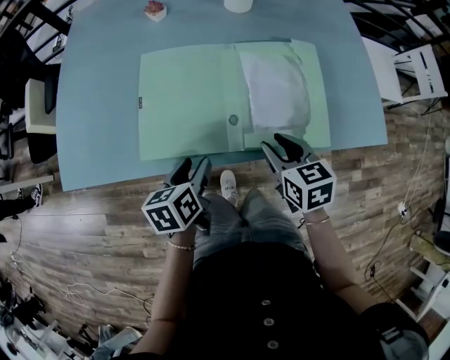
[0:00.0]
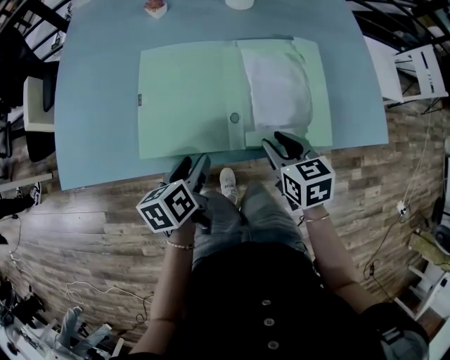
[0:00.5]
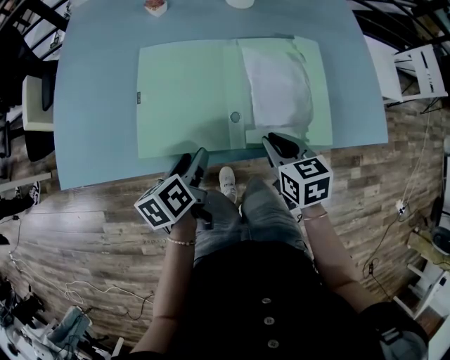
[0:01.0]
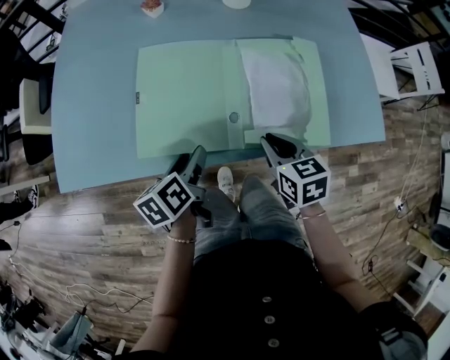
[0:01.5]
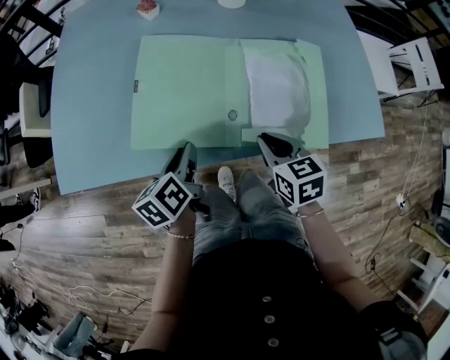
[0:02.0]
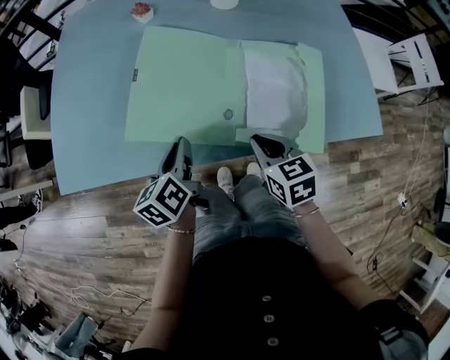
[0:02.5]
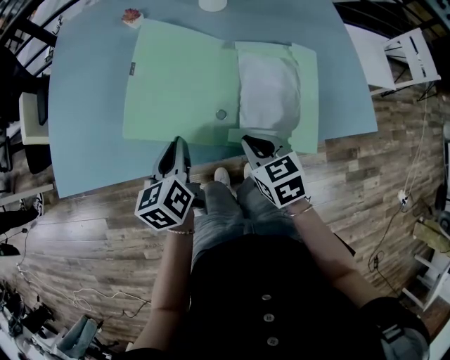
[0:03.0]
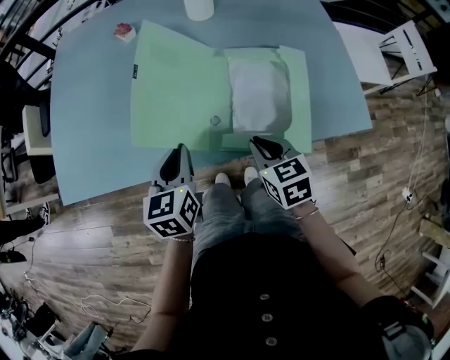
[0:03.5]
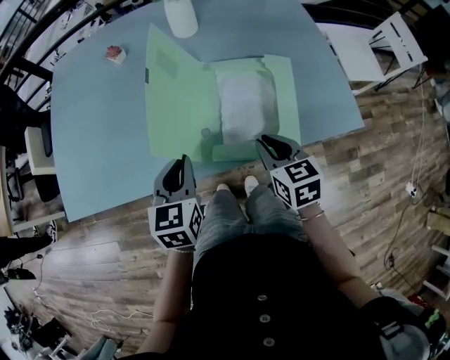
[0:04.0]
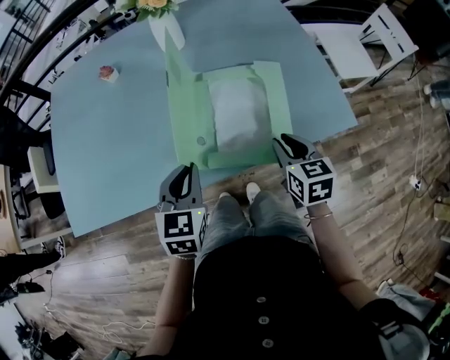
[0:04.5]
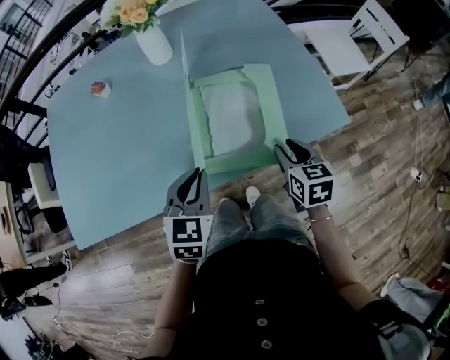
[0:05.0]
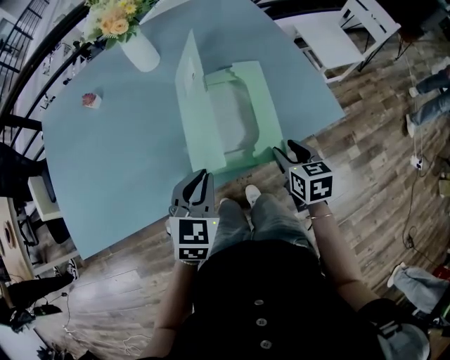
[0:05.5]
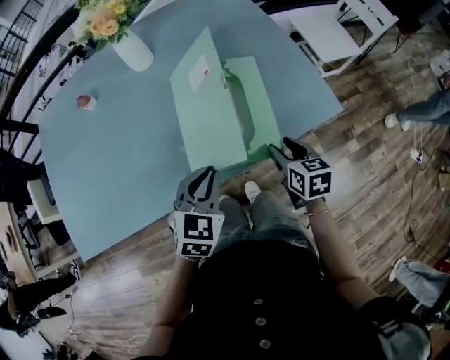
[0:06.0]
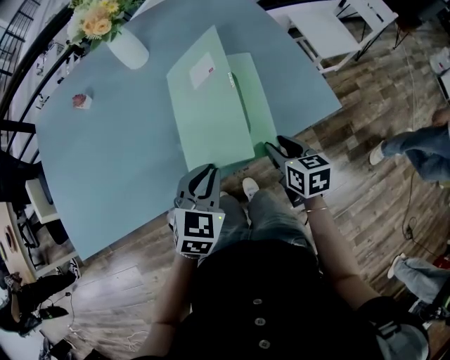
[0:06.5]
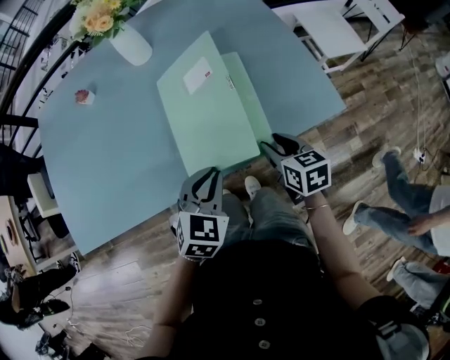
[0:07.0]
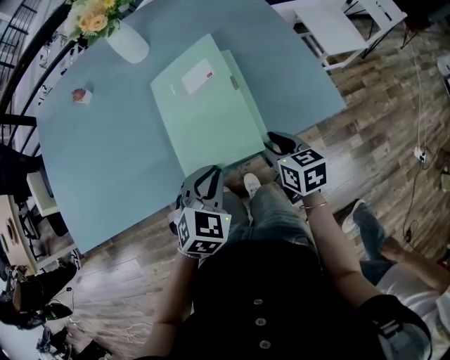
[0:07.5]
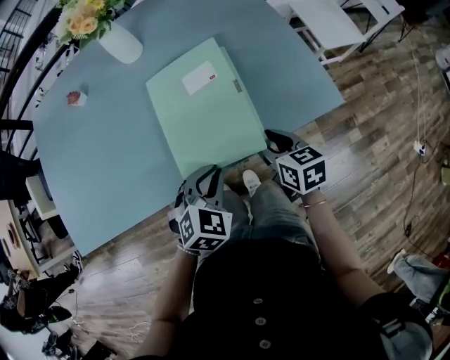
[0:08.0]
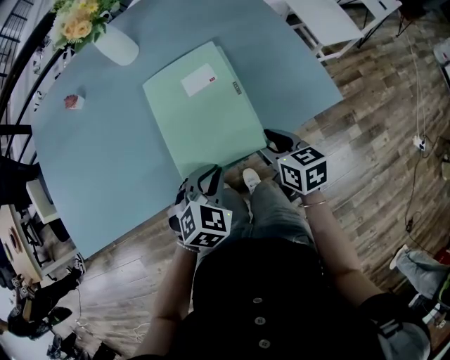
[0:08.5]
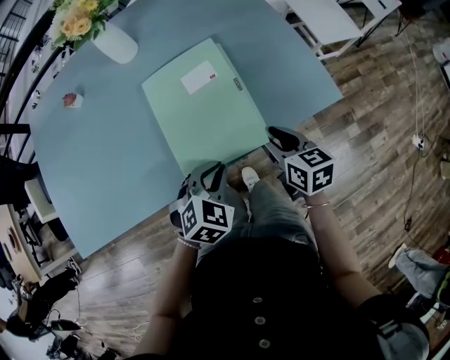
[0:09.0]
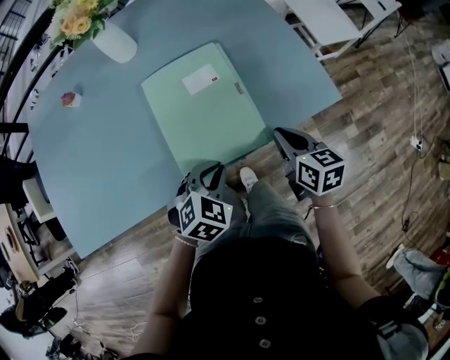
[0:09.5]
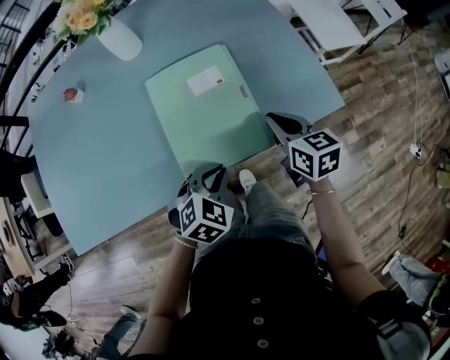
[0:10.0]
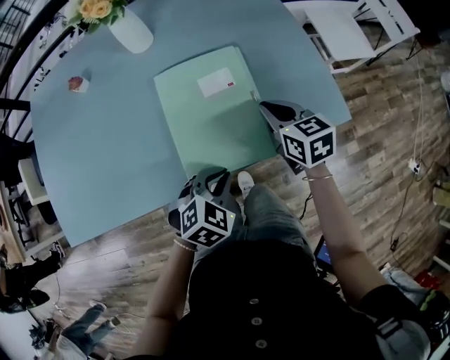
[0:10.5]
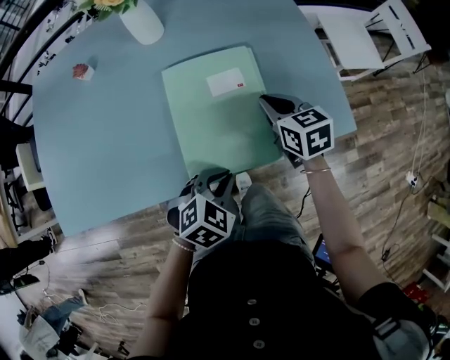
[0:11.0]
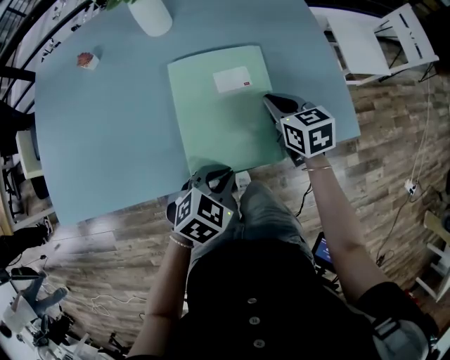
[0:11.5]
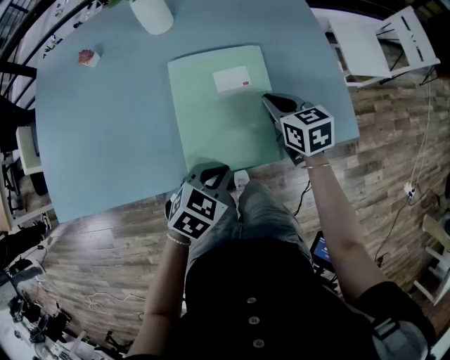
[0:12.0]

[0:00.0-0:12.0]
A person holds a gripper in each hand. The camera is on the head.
0:00.0 to 0:02.0: The right gripper closes; the left gripper closes its fingers.
0:02.0 to 0:04.0: The left gripper is displaced to the right and upward by approximately 15 cm, and rolls clockwise, seen from behind, by approximately 40 degrees, while the right gripper heads to the right, covering roughly 10 cm.
0:04.0 to 0:06.0: The grippers both shift to the right by about 15 cm. The right gripper rotates about 20 degrees, and opens, while the left gripper swivels some 40 degrees.
0:06.0 to 0:08.0: The left gripper changes place by roughly 5 cm.
0:08.0 to 0:10.0: The right gripper heads forward, covering some 5 cm, and closes.
0:10.0 to 0:12.0: The right gripper heads forward and to the left, covering roughly 10 cm.

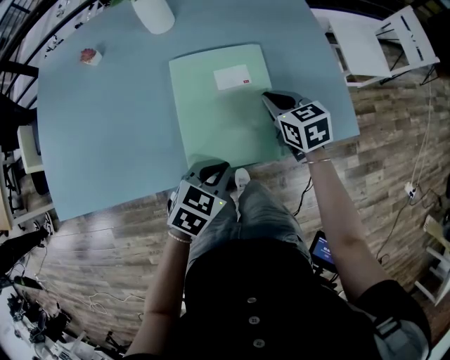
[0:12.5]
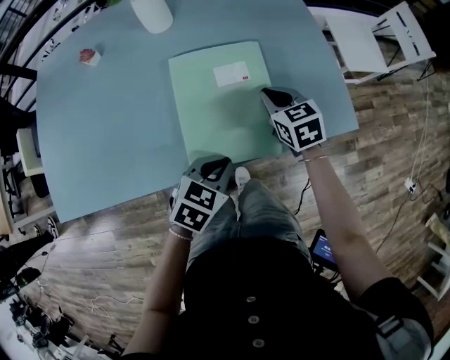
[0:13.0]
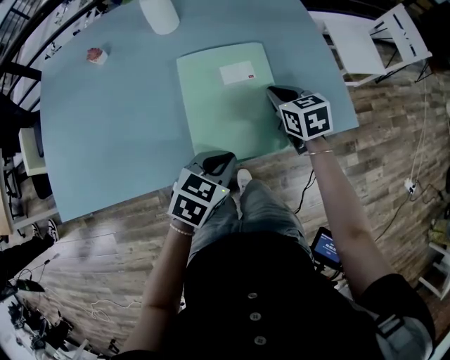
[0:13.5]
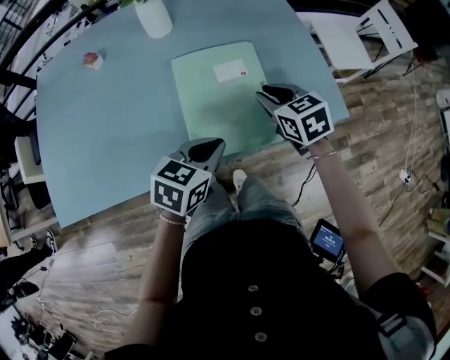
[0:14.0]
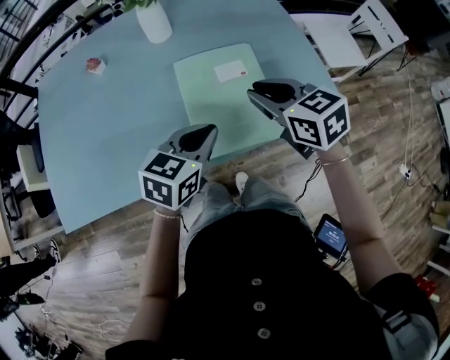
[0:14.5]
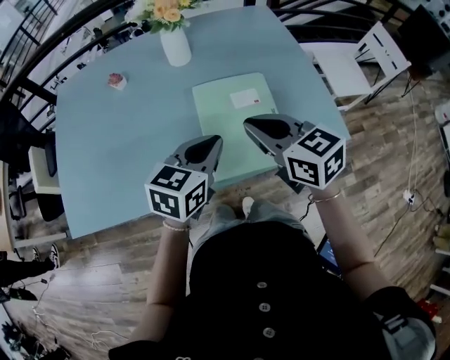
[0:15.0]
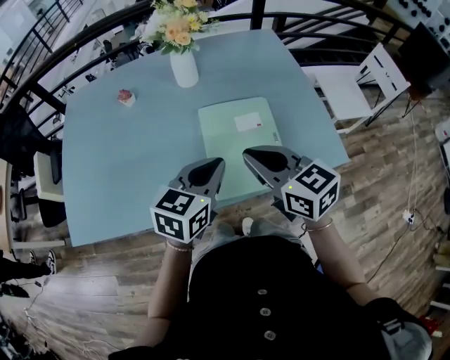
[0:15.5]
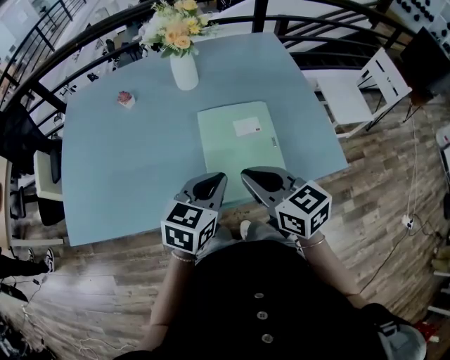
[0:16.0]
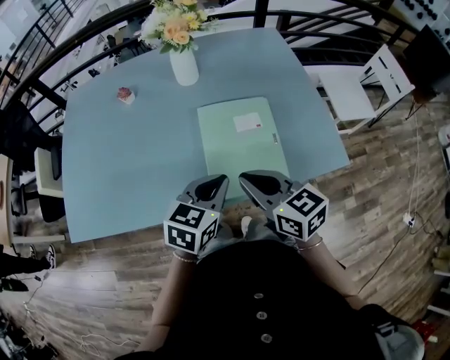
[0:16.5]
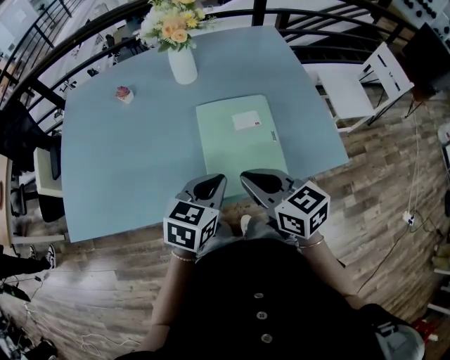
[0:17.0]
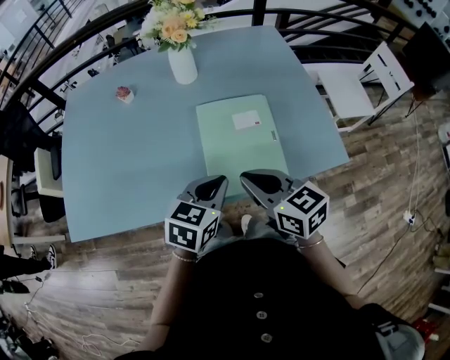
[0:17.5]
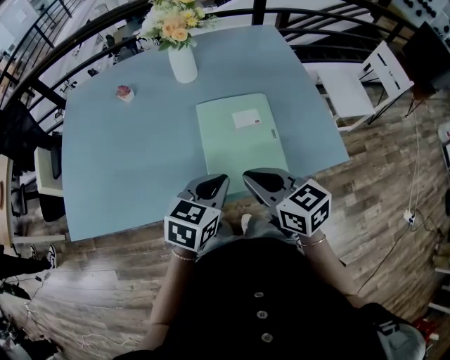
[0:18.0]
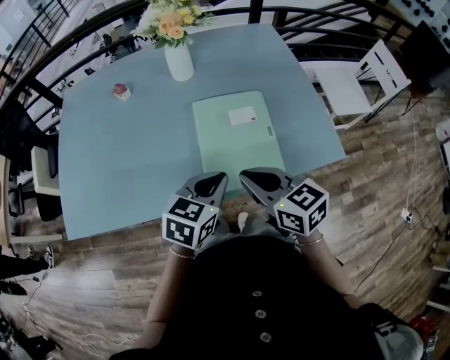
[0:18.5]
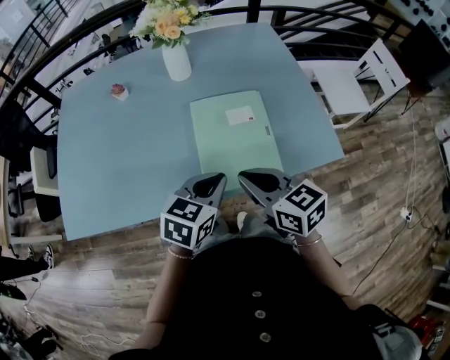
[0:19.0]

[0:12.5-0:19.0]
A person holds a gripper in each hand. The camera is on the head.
0:12.5 to 0:14.5: The left gripper shifts approximately 10 cm upward and to the left. The right gripper travels upward and backward by about 20 cm.
0:14.5 to 0:17.0: The right gripper travels backward and to the left by some 10 cm.
0:17.0 to 0:19.0: The grippers make only small movements.

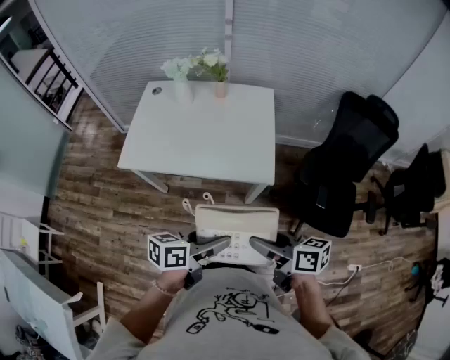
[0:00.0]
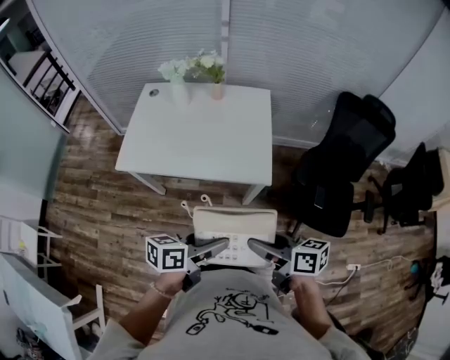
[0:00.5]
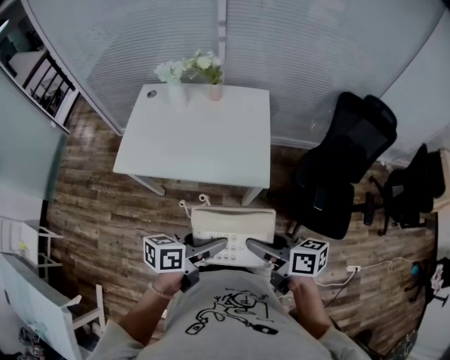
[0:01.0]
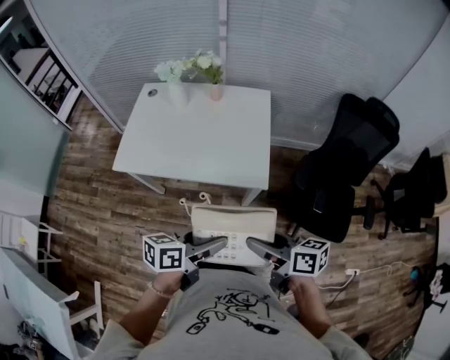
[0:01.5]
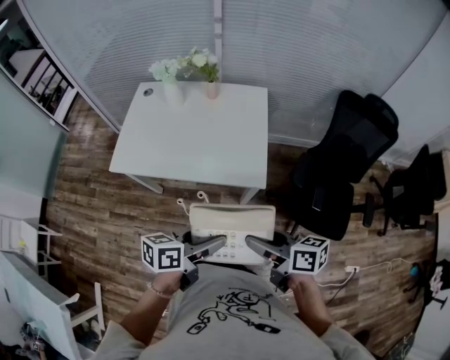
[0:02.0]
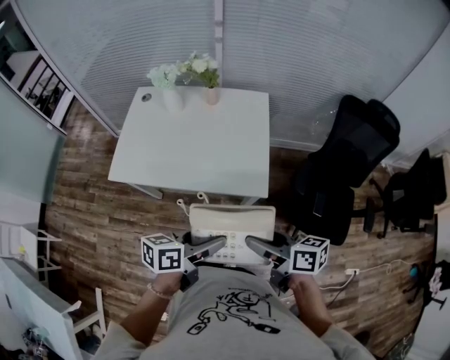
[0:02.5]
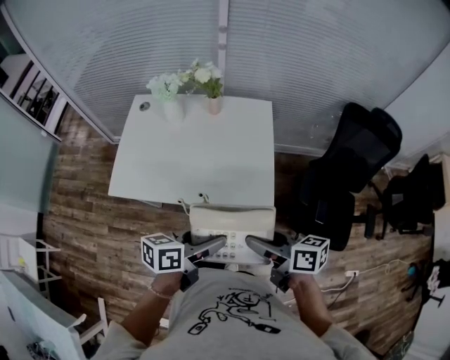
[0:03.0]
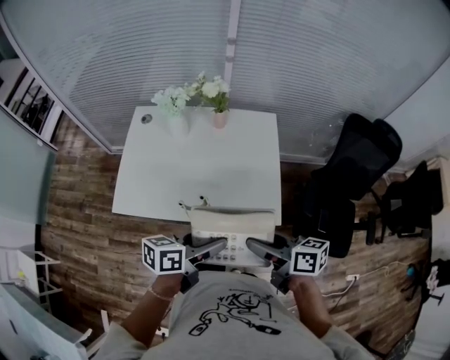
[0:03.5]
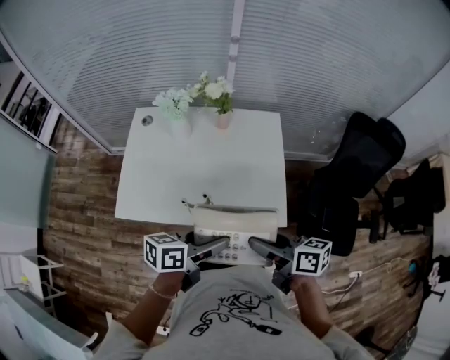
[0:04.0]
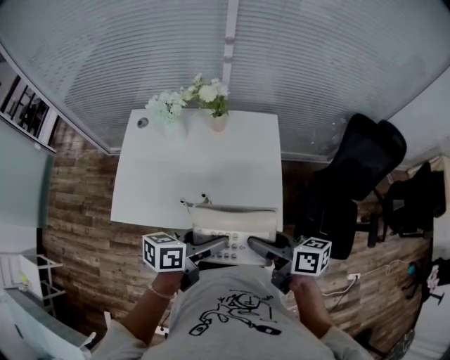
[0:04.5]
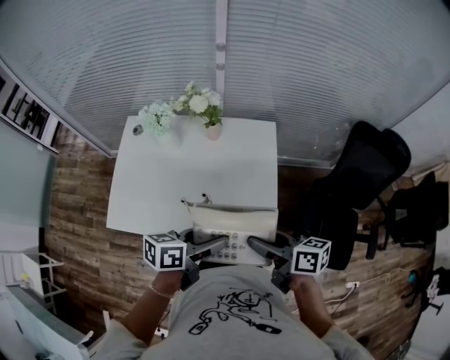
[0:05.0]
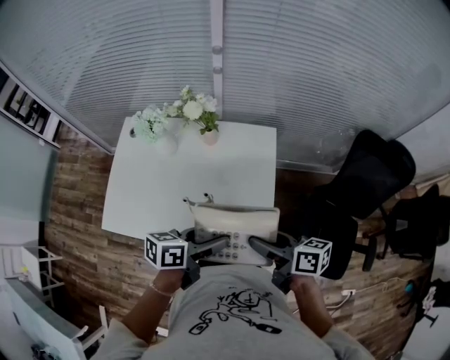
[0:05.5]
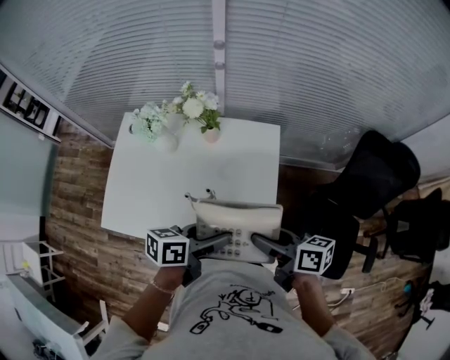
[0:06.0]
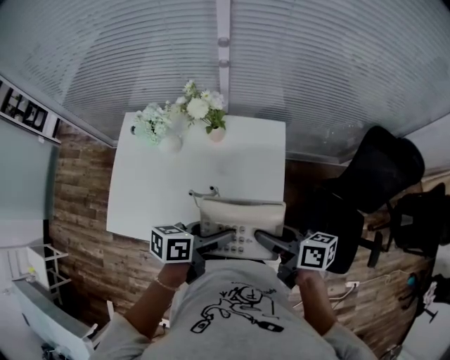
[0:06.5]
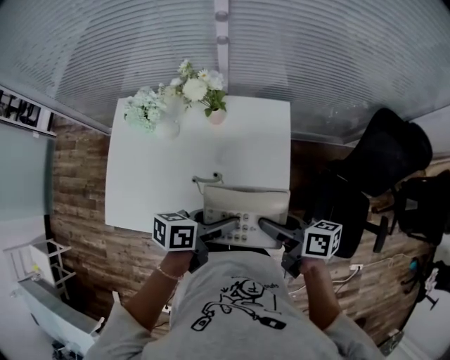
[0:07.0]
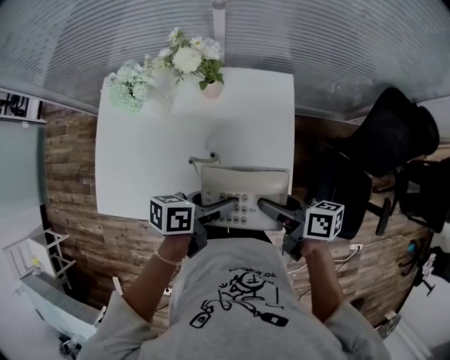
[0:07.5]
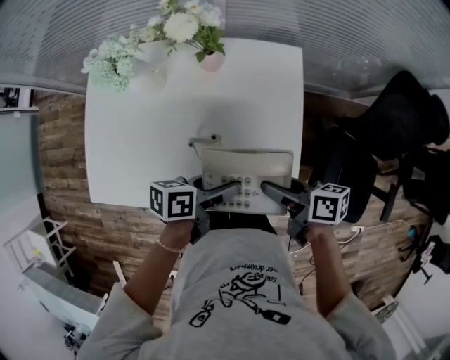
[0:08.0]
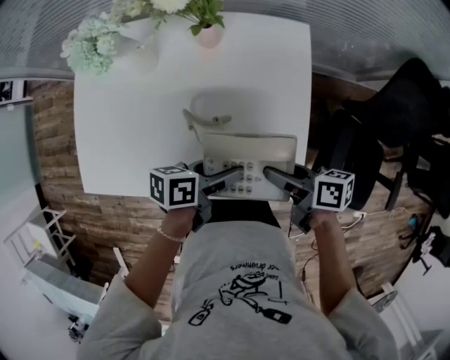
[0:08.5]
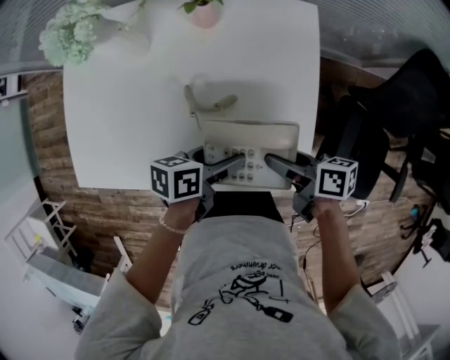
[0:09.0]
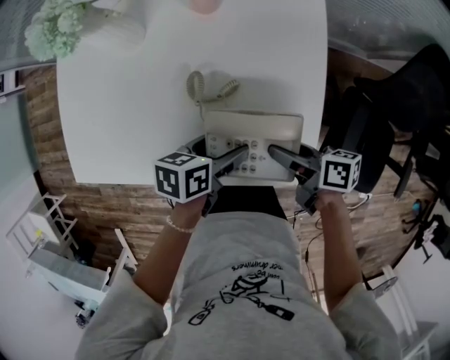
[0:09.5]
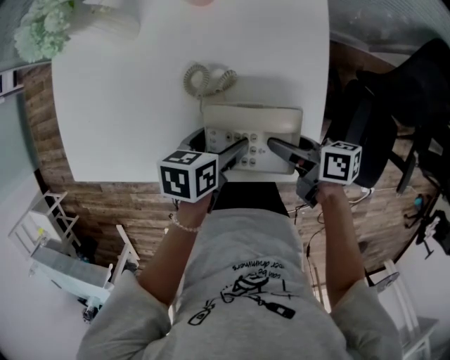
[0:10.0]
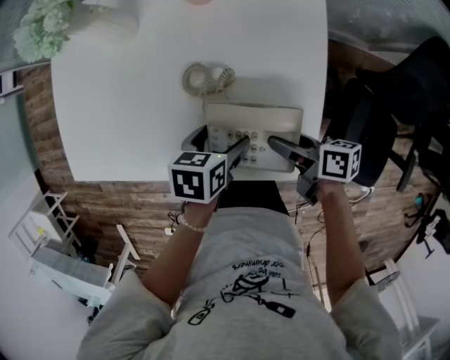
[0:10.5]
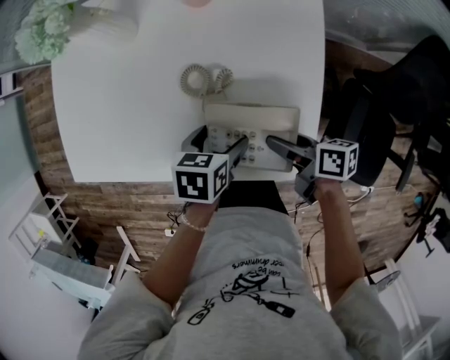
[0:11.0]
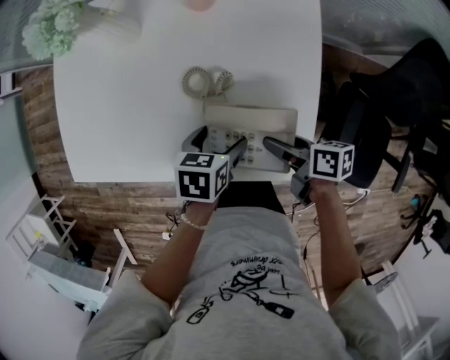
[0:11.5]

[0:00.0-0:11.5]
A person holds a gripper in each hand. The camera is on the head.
0:00.0 to 0:02.0: The grippers move only a little.
0:02.0 to 0:04.0: Both grippers travel together forward and to the left, roughly 20 cm.
0:04.0 to 0:06.0: The two grippers go approximately 15 cm forward and to the right.
0:06.0 to 0:07.5: Both grippers move downward, roughly 10 cm.
0:07.5 to 0:09.5: Both grippers move downward, some 15 cm.
0:09.5 to 0:11.5: The grippers stay close to where they were, moving slightly.
